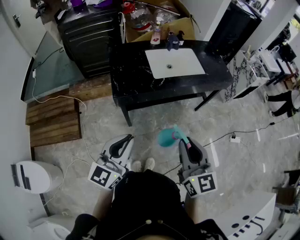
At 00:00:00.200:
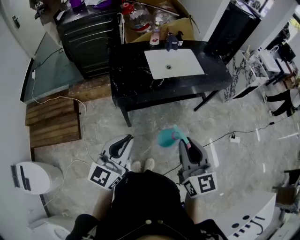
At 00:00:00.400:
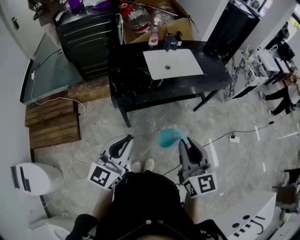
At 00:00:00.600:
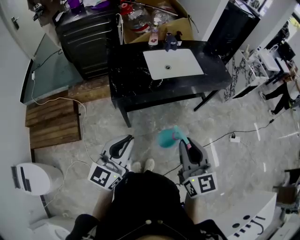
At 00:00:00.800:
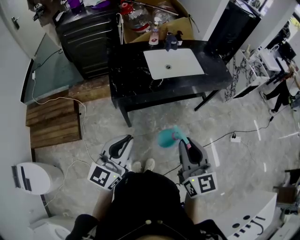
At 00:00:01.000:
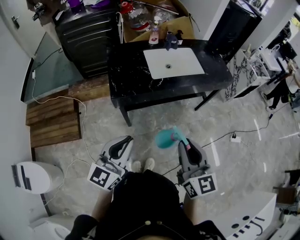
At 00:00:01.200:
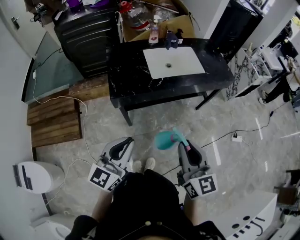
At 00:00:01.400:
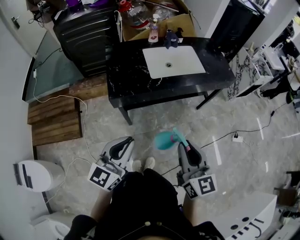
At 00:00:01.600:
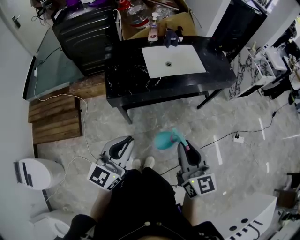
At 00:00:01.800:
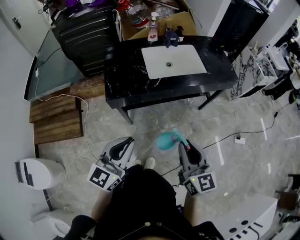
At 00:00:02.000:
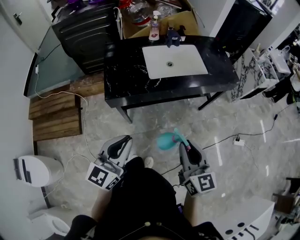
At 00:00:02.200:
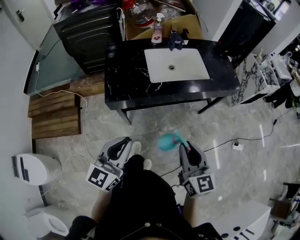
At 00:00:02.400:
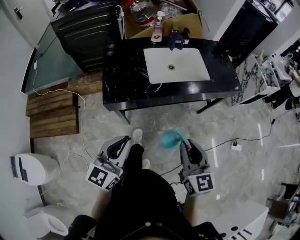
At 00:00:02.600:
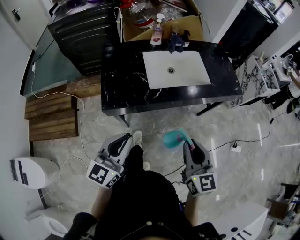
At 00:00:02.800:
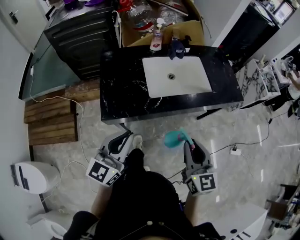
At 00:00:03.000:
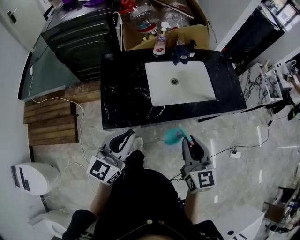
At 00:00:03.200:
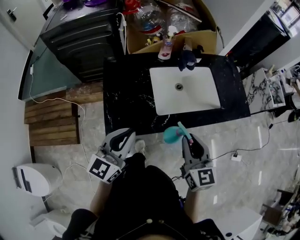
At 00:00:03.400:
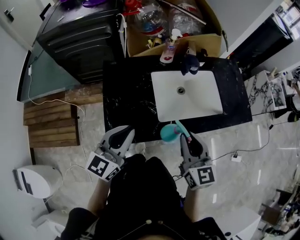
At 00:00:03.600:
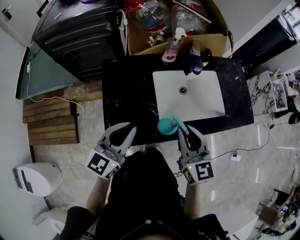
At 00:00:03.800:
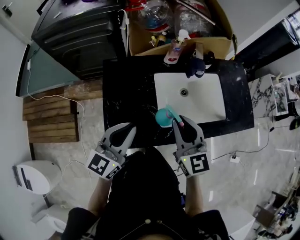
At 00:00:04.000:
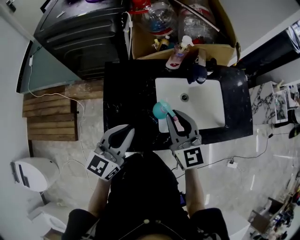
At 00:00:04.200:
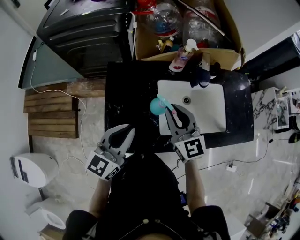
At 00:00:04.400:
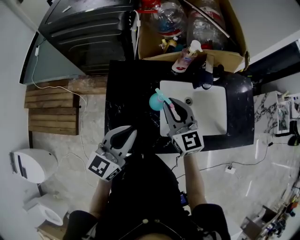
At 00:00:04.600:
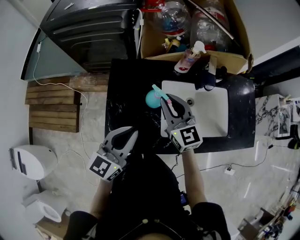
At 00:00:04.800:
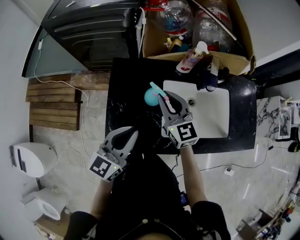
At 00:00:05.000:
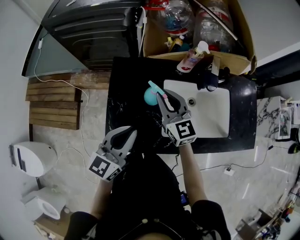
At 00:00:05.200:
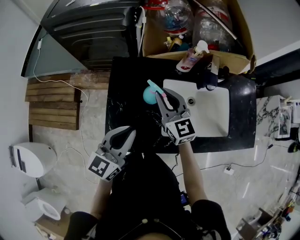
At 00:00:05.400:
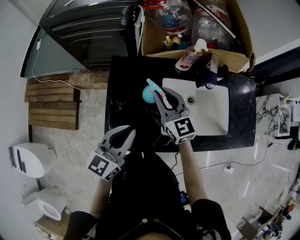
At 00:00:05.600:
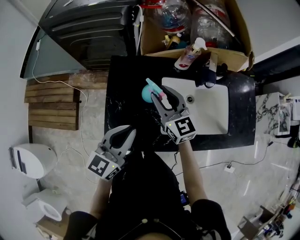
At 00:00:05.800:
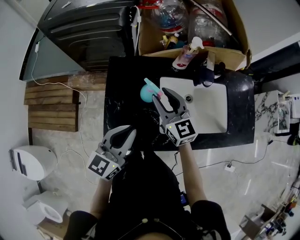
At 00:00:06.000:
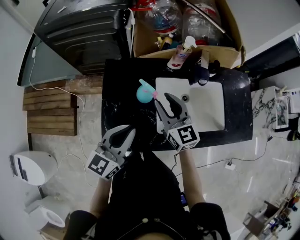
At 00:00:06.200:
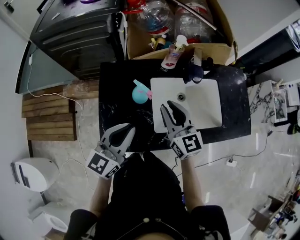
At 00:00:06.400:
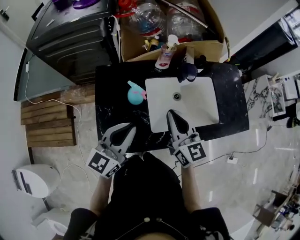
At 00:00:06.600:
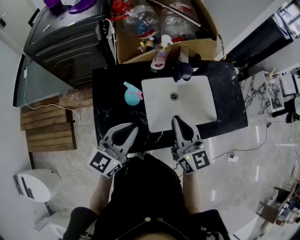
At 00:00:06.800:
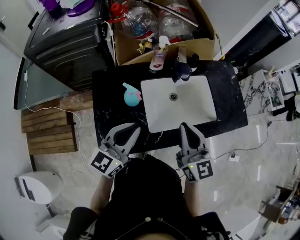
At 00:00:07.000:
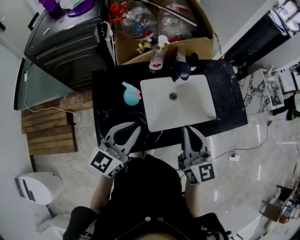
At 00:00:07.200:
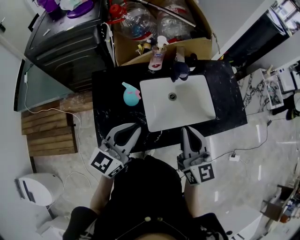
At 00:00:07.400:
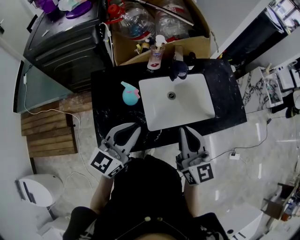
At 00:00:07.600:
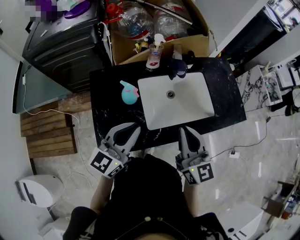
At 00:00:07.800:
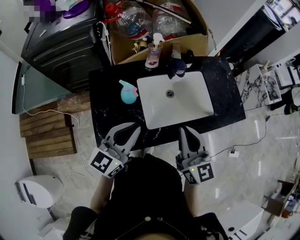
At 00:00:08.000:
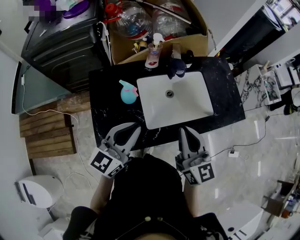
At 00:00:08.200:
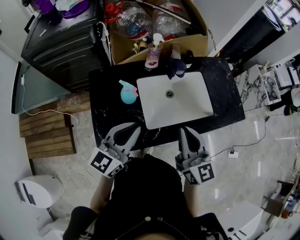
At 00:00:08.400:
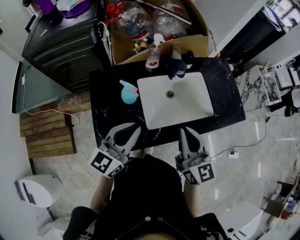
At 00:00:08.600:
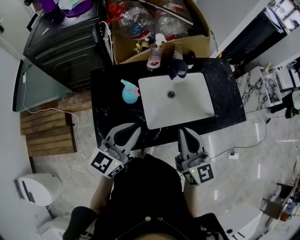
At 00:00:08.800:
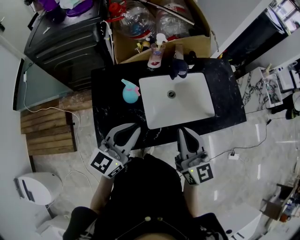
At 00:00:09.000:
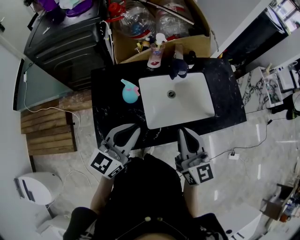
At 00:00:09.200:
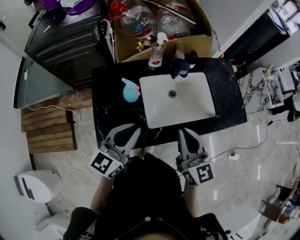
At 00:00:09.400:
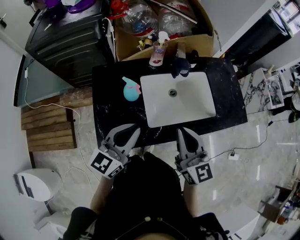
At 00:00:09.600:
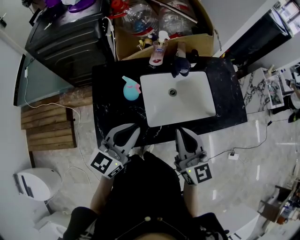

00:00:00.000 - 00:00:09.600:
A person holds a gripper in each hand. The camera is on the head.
00:00:00.000 - 00:00:01.600: The right gripper shifts by approximately 5 cm. Meanwhile the left gripper changes place by about 5 cm.
00:00:01.600 - 00:00:03.200: The two grippers go some 30 cm forward.
00:00:03.200 - 00:00:04.800: The right gripper travels forward and to the left by approximately 30 cm, and swivels about 30 degrees. Meanwhile the left gripper is displaced forward by approximately 10 cm.
00:00:04.800 - 00:00:06.400: The right gripper heads to the right and backward, covering approximately 15 cm, and opens, then closes once more.
00:00:06.400 - 00:00:08.000: The right gripper travels backward, to the right and upward by approximately 10 cm.
00:00:08.000 - 00:00:09.600: The grippers stay close to where they were, moving slightly.

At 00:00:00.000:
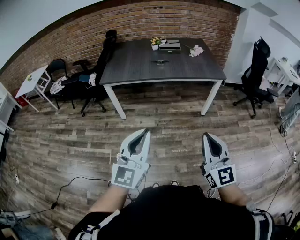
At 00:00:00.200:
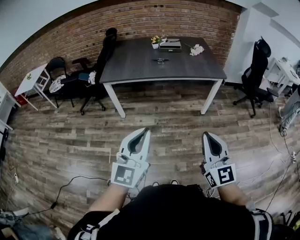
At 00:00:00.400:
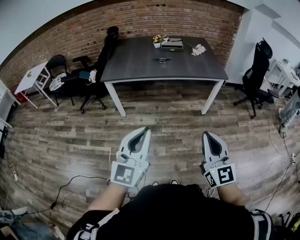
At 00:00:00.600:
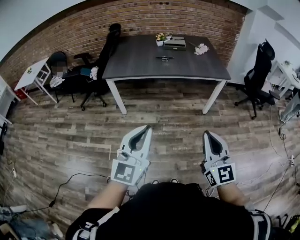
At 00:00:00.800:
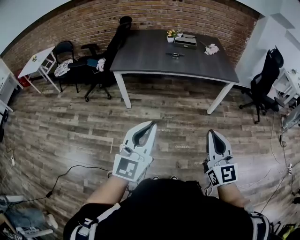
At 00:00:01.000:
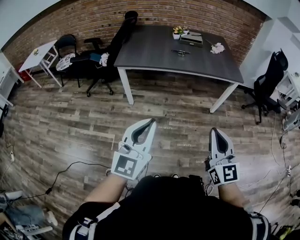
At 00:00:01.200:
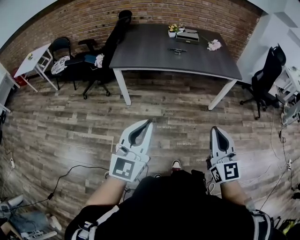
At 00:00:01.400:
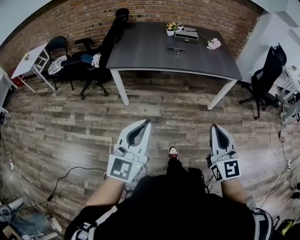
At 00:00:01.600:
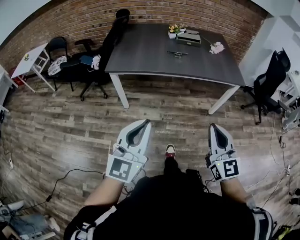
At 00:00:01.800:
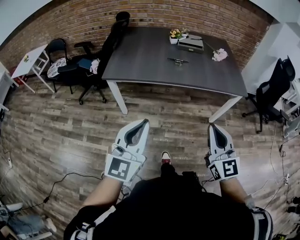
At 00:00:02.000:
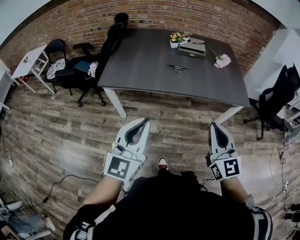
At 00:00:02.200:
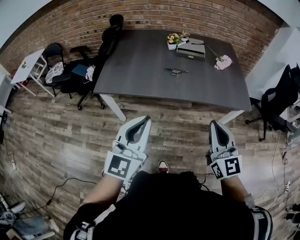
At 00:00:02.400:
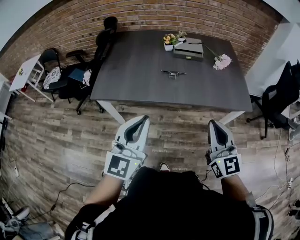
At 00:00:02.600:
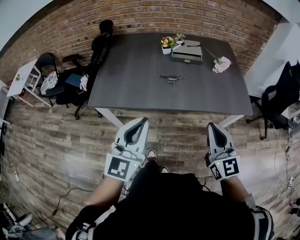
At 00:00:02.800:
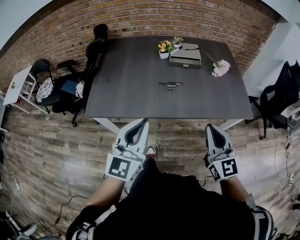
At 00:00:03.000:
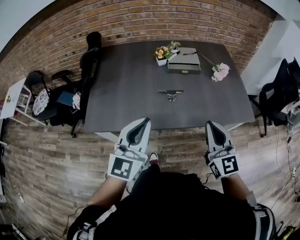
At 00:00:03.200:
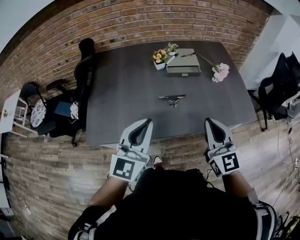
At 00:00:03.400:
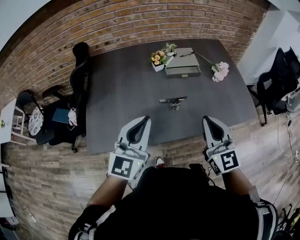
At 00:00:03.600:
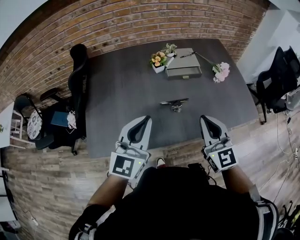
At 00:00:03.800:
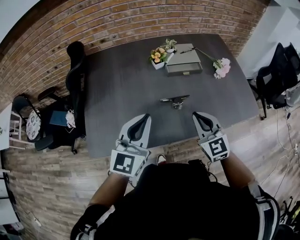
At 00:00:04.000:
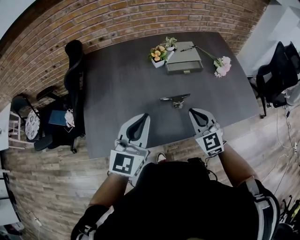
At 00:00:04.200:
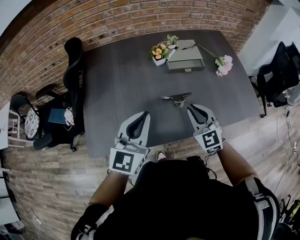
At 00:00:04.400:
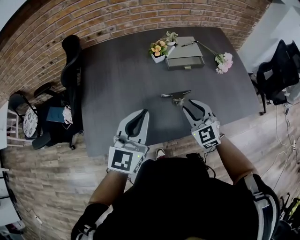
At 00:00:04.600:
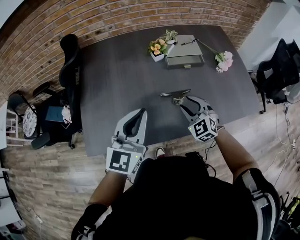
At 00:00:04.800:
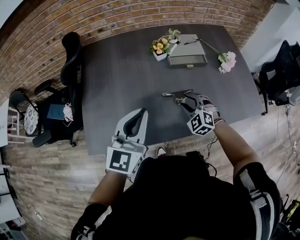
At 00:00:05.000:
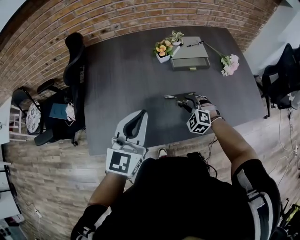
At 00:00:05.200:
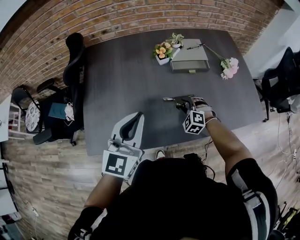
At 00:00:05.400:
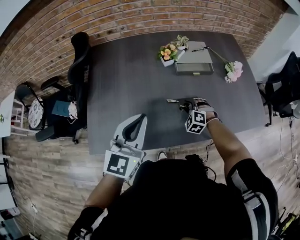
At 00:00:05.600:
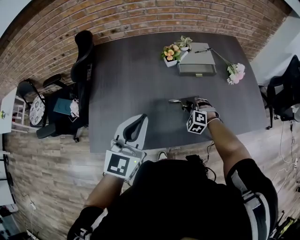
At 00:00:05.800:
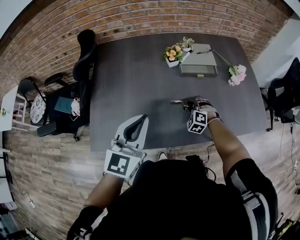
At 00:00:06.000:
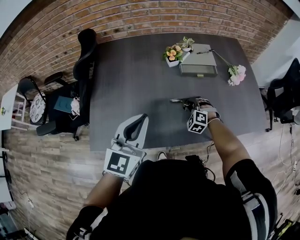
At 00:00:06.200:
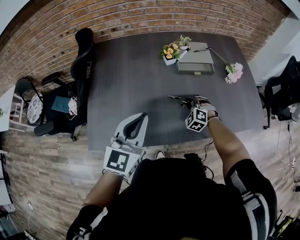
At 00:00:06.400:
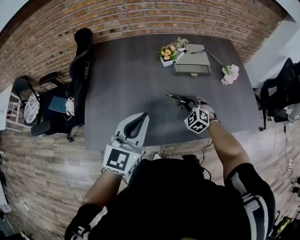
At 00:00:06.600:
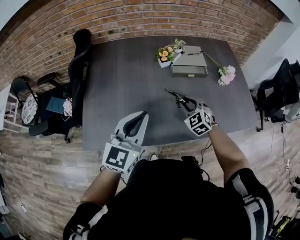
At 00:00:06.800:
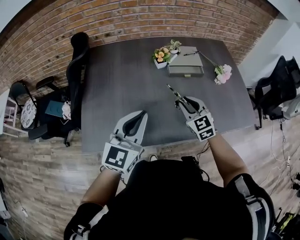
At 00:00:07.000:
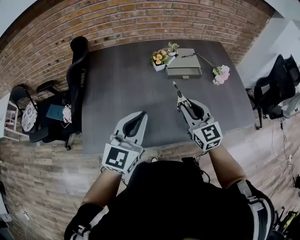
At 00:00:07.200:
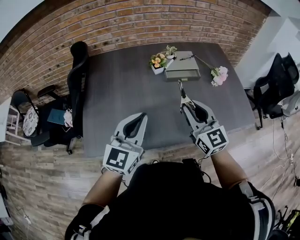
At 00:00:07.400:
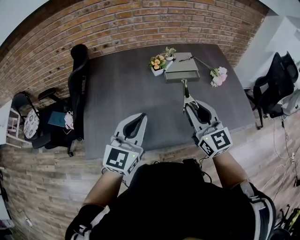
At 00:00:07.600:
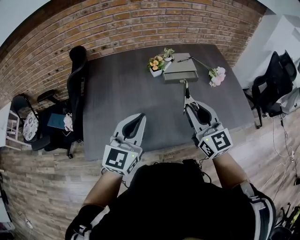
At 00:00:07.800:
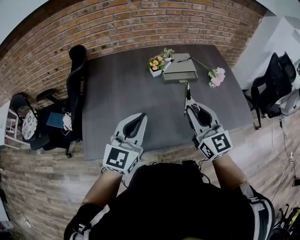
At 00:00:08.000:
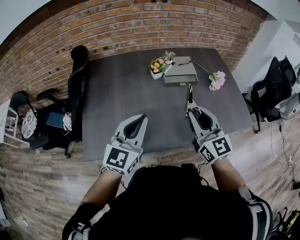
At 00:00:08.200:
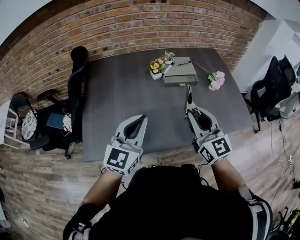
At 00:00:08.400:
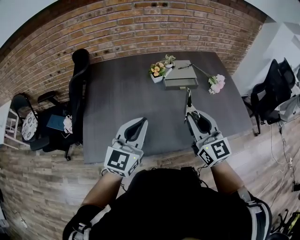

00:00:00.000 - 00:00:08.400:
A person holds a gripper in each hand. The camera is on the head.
00:00:00.000 - 00:00:01.400: The right gripper is displaced forward and to the left by about 10 cm, while the left gripper travels to the left and forward by about 15 cm.
00:00:01.400 - 00:00:02.800: The pair of grippers is taken forward, about 40 cm.
00:00:02.800 - 00:00:04.200: The left gripper goes about 25 cm forward and to the left. Meanwhile the right gripper moves forward, to the left and downward, approximately 30 cm, and swivels about 20 degrees.
00:00:04.200 - 00:00:05.600: The right gripper goes about 20 cm downward and forward, tilts its fingers roughly 30 degrees downward, and opens.
00:00:05.600 - 00:00:07.000: The right gripper moves upward, approximately 25 cm, and tips its fingers upward by approximately 40 degrees.
00:00:07.000 - 00:00:08.400: The right gripper travels upward by some 5 cm.

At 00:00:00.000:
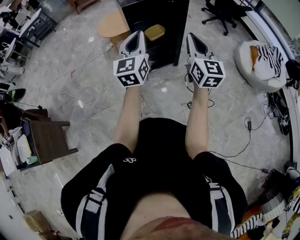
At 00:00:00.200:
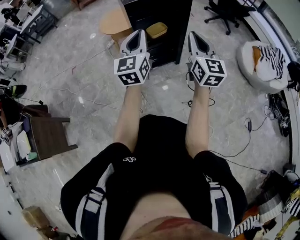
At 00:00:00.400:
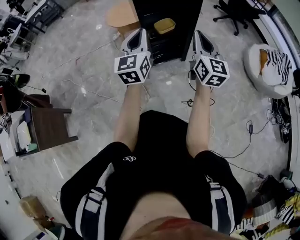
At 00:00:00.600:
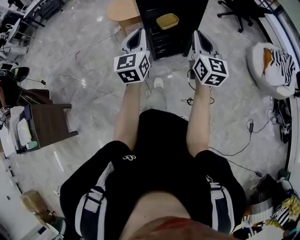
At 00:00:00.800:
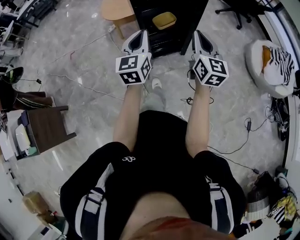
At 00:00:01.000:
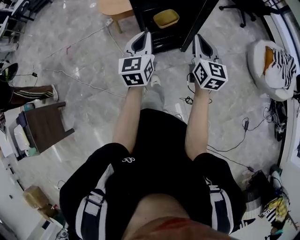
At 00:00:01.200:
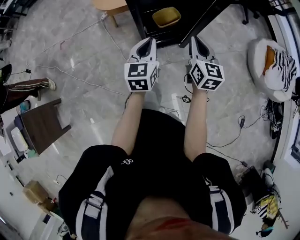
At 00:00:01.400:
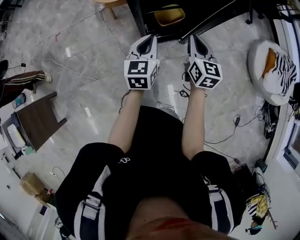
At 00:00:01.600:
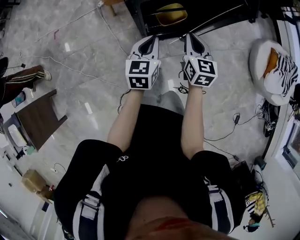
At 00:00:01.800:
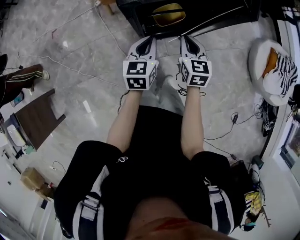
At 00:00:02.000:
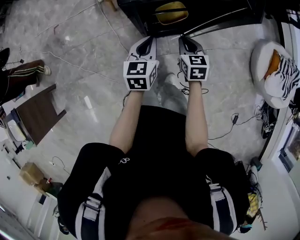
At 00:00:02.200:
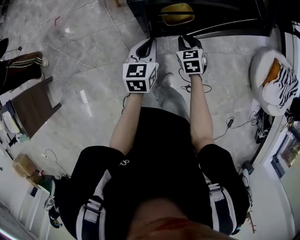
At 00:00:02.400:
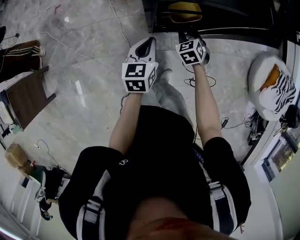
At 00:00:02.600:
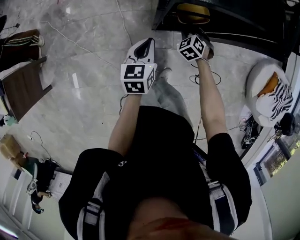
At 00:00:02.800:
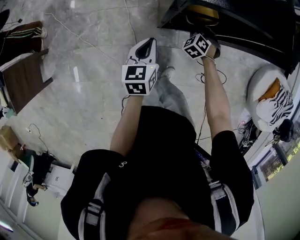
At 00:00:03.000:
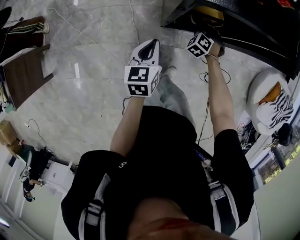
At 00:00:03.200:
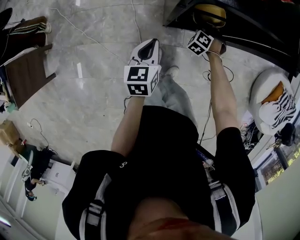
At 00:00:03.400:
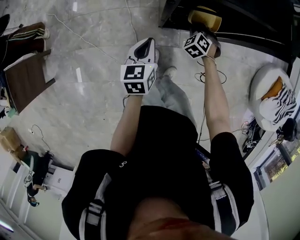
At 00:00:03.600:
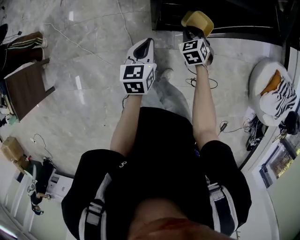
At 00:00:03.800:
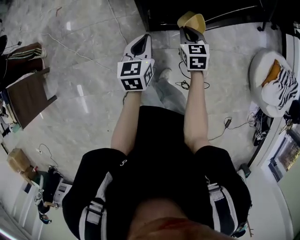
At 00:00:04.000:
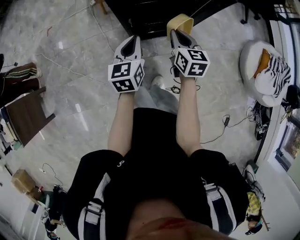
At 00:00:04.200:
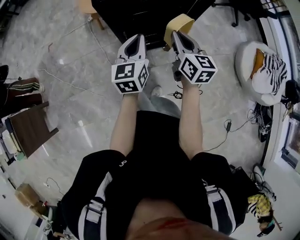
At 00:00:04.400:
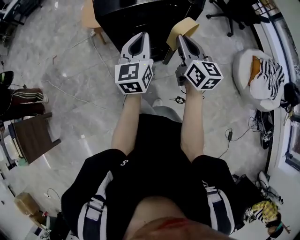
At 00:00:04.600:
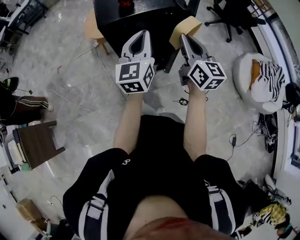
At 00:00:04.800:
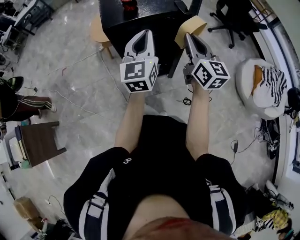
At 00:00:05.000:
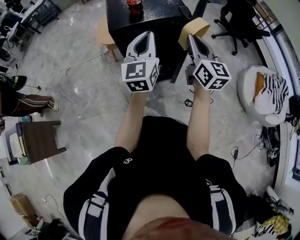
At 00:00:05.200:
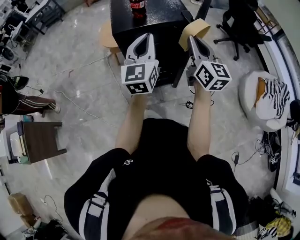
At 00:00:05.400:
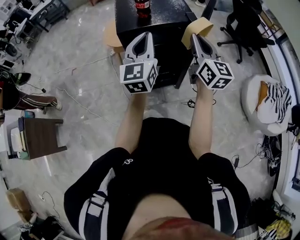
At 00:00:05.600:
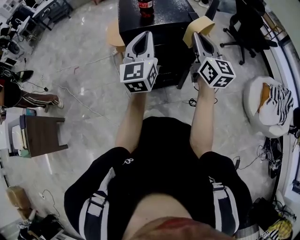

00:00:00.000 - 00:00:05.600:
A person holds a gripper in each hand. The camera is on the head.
00:00:00.000 - 00:00:01.400: The two grippers go some 35 cm forward and downward. The right gripper turns by approximately 30 degrees; the left gripper swivels about 30 degrees.
00:00:01.400 - 00:00:02.800: The right gripper heads downward and forward, covering approximately 30 cm, and rotates around the line of its fingers by some 70 degrees, counterclockwise from behind. Meanwhile the left gripper heads downward and to the left, covering some 15 cm, and swivels approximately 20 degrees.
00:00:02.800 - 00:00:04.200: The right gripper travels upward, backward and to the right by some 35 cm, and rolls clockwise, seen from behind, by roughly 70 degrees; the left gripper moves to the right and upward, about 20 cm, and changes its angle by roughly 20 degrees.
00:00:04.200 - 00:00:05.600: The two grippers go roughly 20 cm upward. The right gripper swivels roughly 20 degrees. Meanwhile the left gripper swivels approximately 30 degrees.
